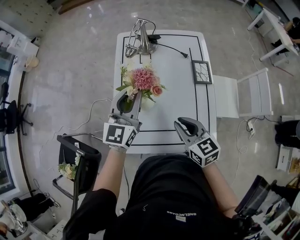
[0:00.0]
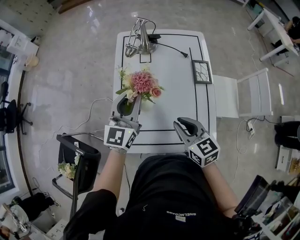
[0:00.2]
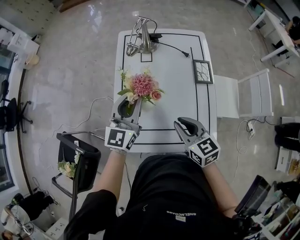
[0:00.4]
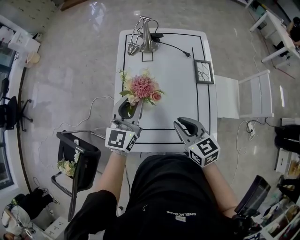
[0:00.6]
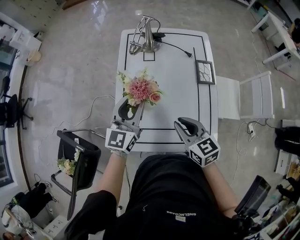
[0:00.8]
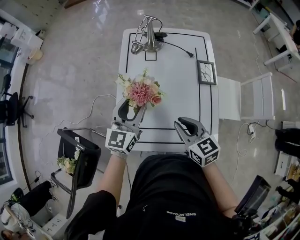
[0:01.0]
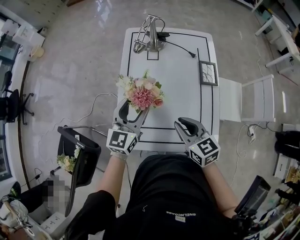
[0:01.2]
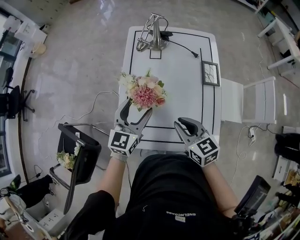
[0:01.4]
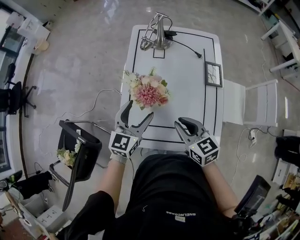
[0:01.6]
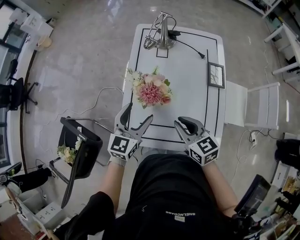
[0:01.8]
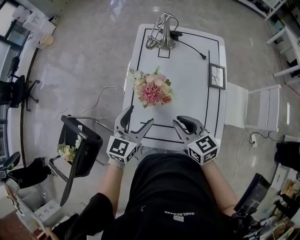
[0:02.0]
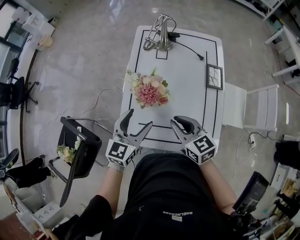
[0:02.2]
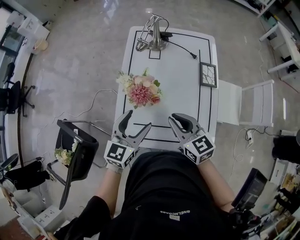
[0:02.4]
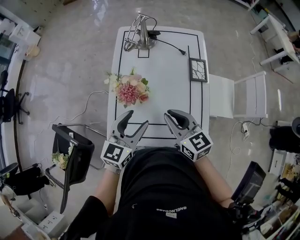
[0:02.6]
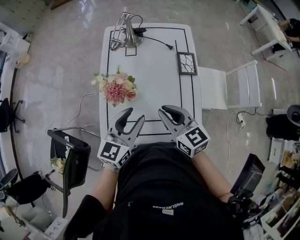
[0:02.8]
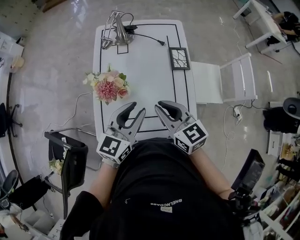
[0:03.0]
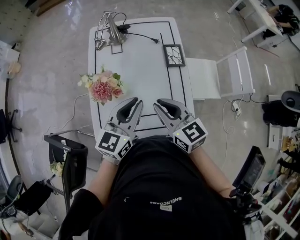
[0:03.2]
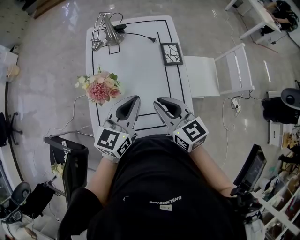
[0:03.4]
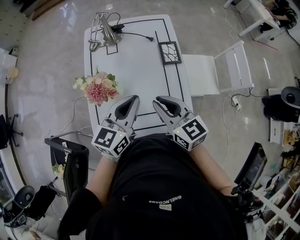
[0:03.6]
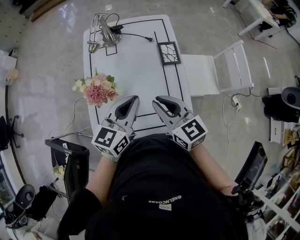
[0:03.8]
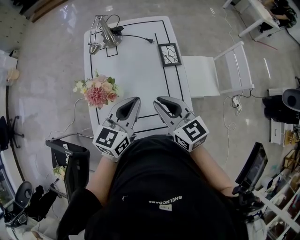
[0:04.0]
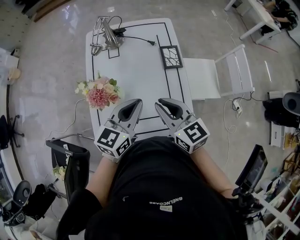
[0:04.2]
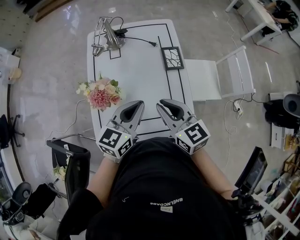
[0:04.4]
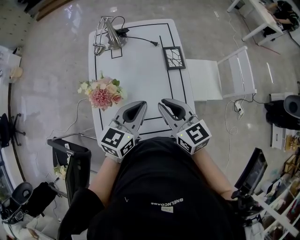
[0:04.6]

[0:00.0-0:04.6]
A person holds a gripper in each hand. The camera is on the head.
0:00.0 to 0:01.6: The left gripper travels downward and backward by some 10 cm, and opens.
0:01.6 to 0:03.0: The left gripper goes some 15 cm to the right, upward and backward, and closes up. The right gripper moves upward and to the right, roughly 10 cm.
0:03.0 to 0:04.6: The left gripper closes its fingers.

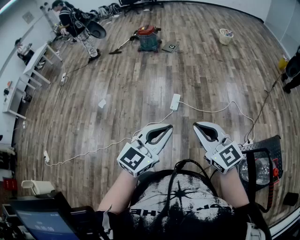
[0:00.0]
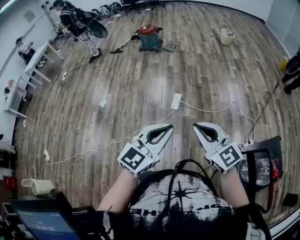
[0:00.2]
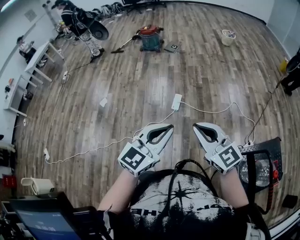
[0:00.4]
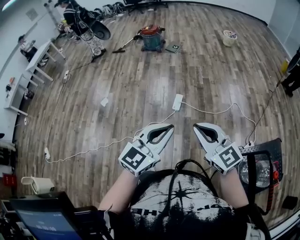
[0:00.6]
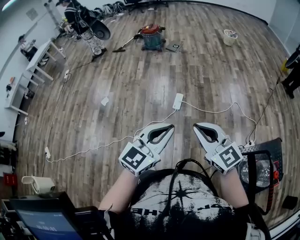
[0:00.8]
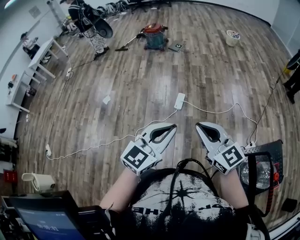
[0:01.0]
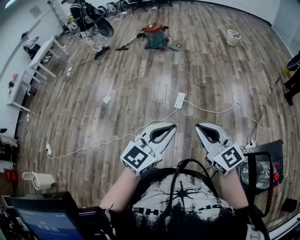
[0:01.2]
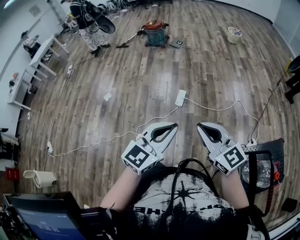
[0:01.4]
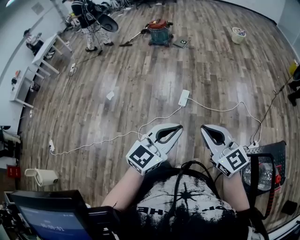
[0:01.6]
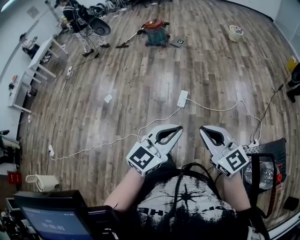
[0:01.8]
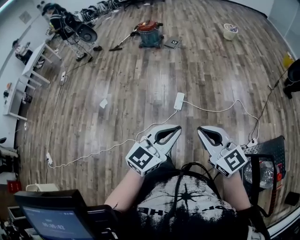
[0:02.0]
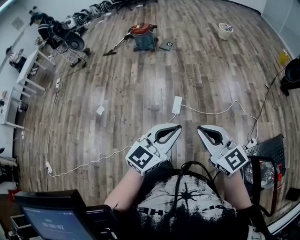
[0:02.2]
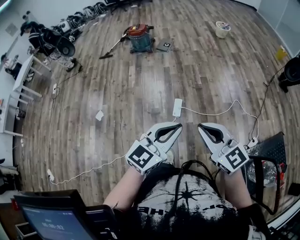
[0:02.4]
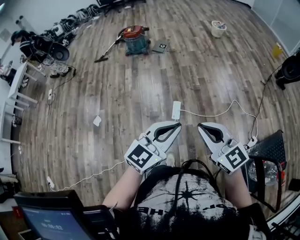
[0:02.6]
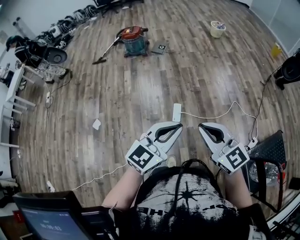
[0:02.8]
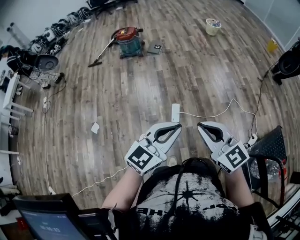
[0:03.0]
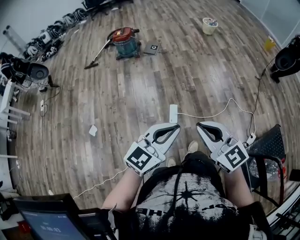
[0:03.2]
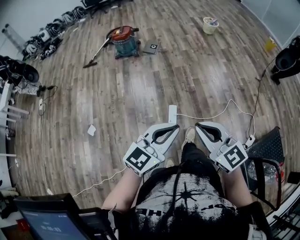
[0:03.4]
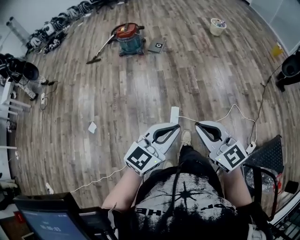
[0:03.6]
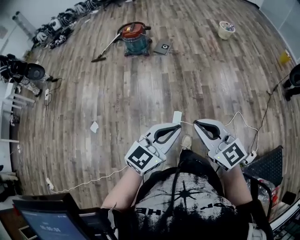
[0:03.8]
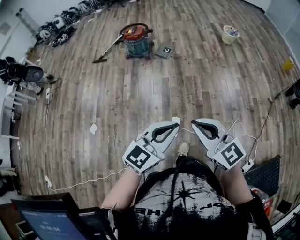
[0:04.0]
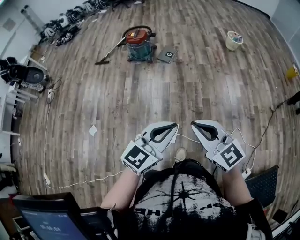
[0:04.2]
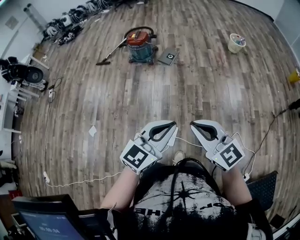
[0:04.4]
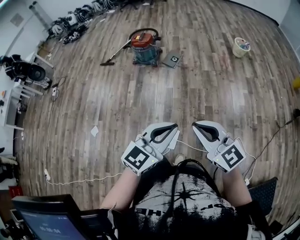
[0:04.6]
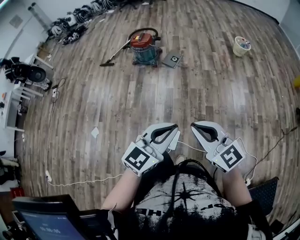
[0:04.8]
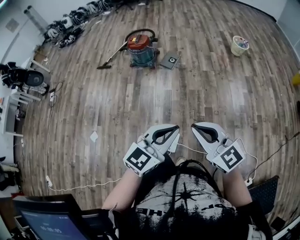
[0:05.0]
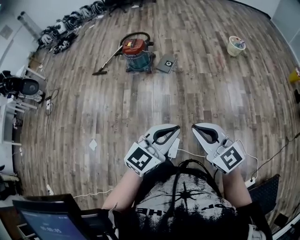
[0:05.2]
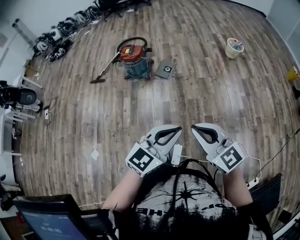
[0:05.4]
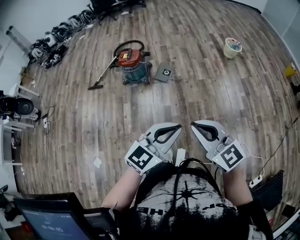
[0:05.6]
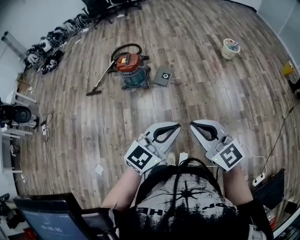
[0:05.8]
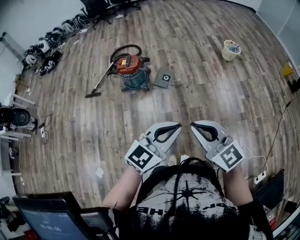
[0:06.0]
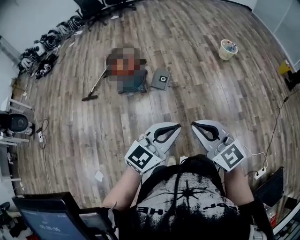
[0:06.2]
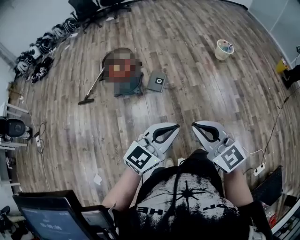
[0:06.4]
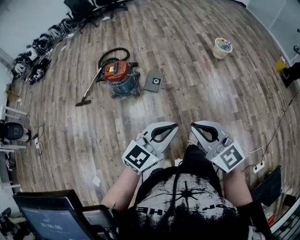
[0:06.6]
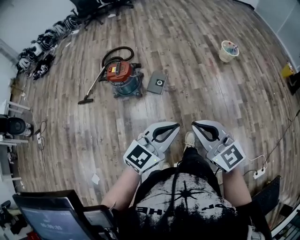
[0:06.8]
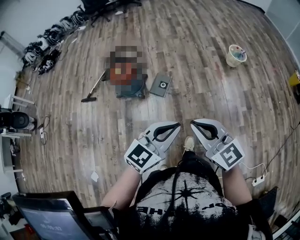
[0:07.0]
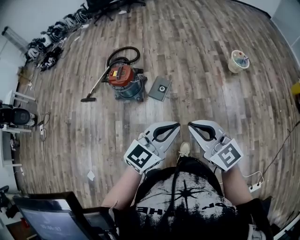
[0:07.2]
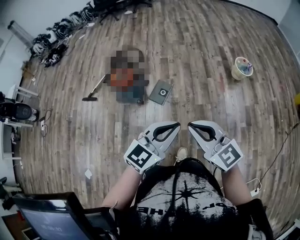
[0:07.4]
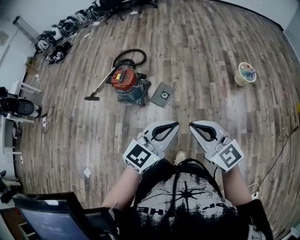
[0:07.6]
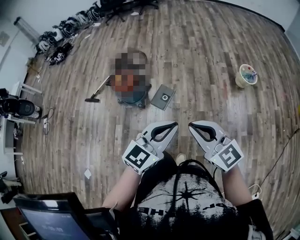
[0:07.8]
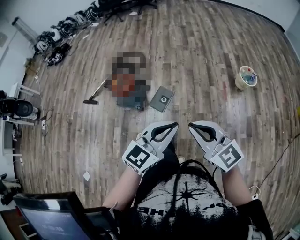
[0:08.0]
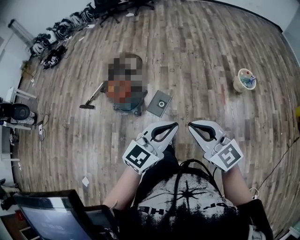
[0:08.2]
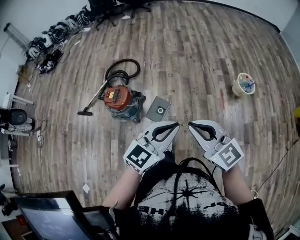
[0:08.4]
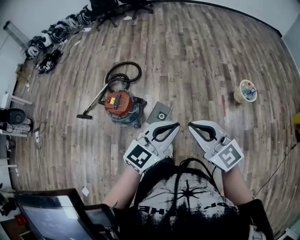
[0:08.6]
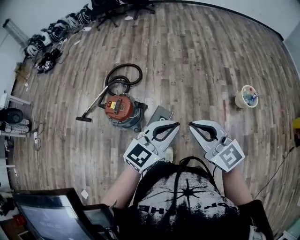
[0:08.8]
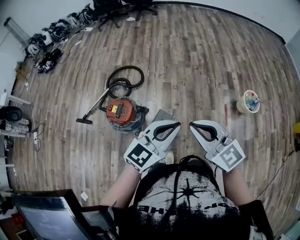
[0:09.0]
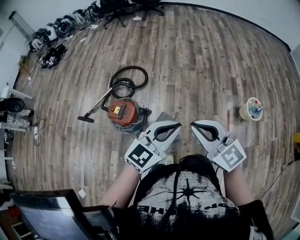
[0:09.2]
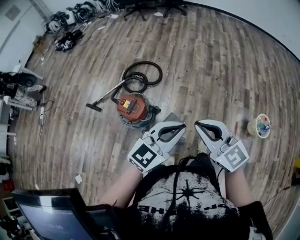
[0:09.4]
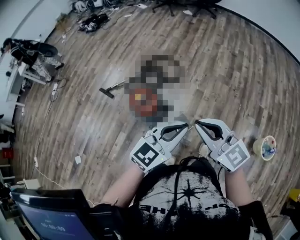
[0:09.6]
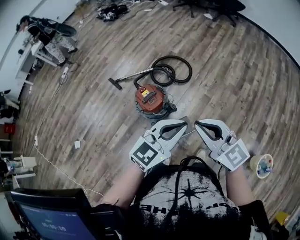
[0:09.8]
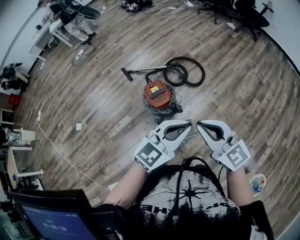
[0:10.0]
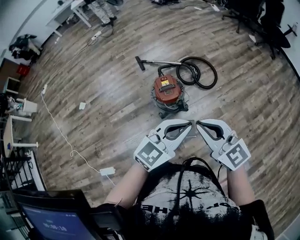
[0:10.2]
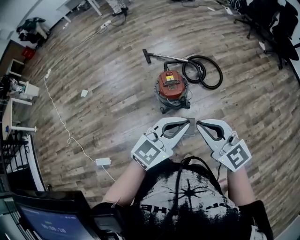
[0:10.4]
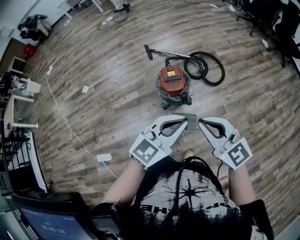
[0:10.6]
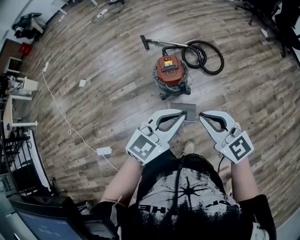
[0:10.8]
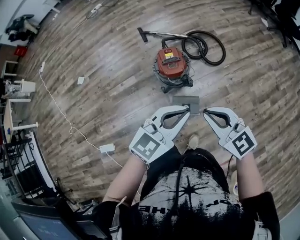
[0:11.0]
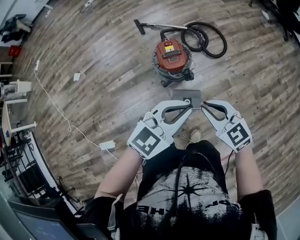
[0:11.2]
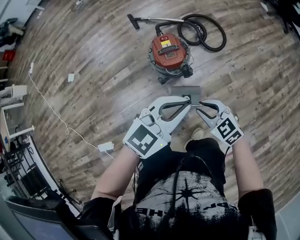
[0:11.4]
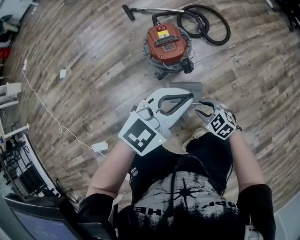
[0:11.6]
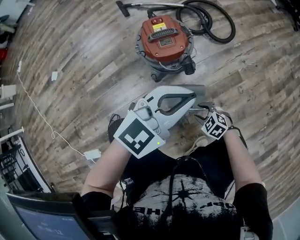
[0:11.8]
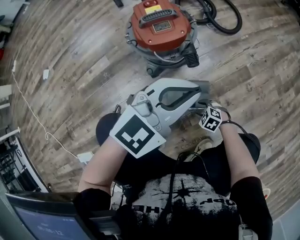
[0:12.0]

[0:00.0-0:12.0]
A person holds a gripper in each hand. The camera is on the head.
0:00.0 to 0:01.6: The grippers make only small movements.
0:01.6 to 0:03.0: Both grippers move forward and to the left, some 30 cm.
0:03.0 to 0:04.4: Both grippers move forward, some 30 cm.
0:04.4 to 0:06.0: The left gripper is displaced forward by roughly 30 cm, while the right gripper travels forward and to the left by some 35 cm.
0:06.0 to 0:07.6: Both grippers move forward and to the right, roughly 40 cm.
0:07.6 to 0:09.0: Both grippers move forward, roughly 35 cm.
0:09.0 to 0:10.4: The right gripper ends up approximately 15 cm from where it was, and changes its angle by about 60 degrees. The left gripper ends up about 15 cm from where it was, and changes its angle by some 60 degrees.
0:10.4 to 0:12.0: The right gripper heads downward, covering roughly 90 cm, points its fingers approximately 60 degrees further downward, and opens up; the left gripper travels downward by roughly 50 cm.

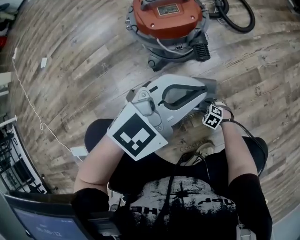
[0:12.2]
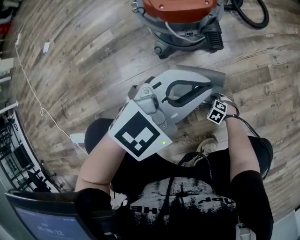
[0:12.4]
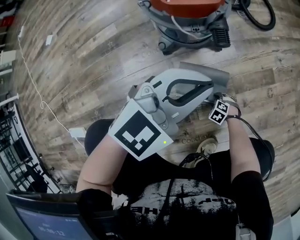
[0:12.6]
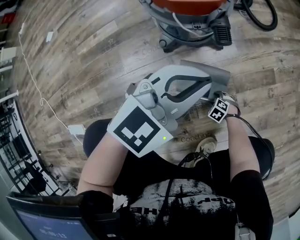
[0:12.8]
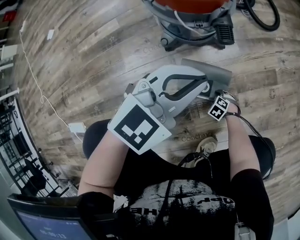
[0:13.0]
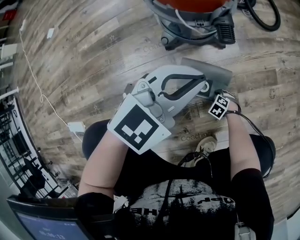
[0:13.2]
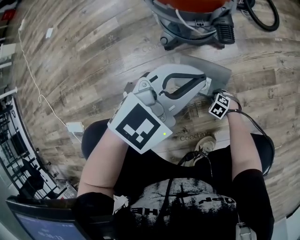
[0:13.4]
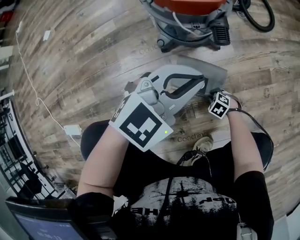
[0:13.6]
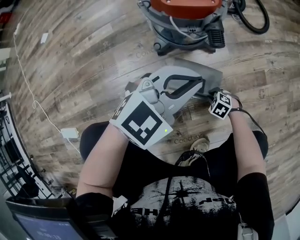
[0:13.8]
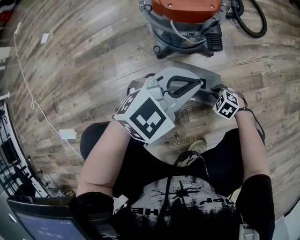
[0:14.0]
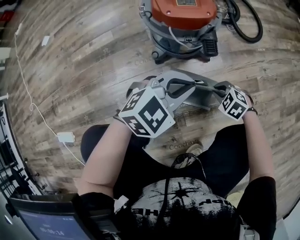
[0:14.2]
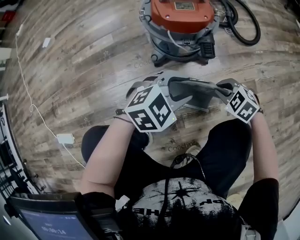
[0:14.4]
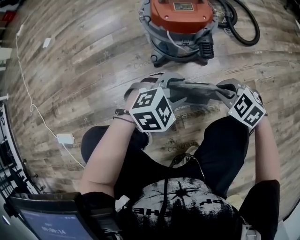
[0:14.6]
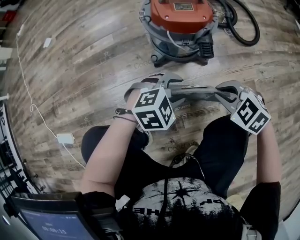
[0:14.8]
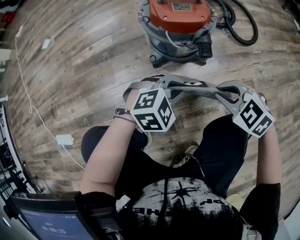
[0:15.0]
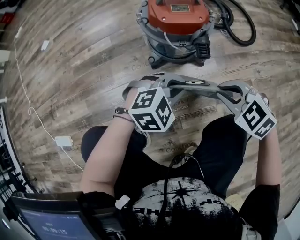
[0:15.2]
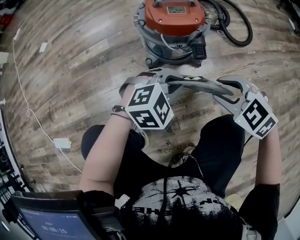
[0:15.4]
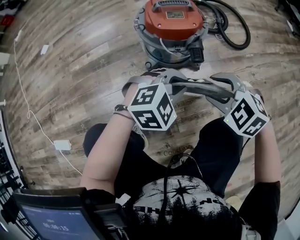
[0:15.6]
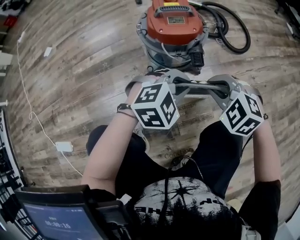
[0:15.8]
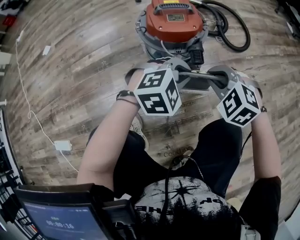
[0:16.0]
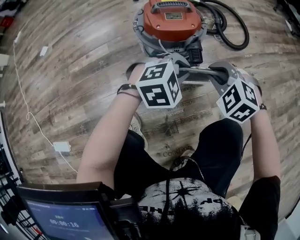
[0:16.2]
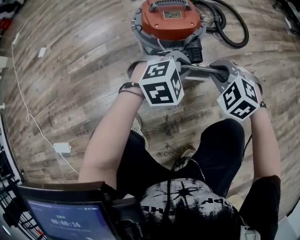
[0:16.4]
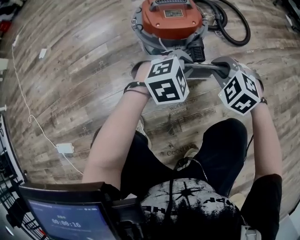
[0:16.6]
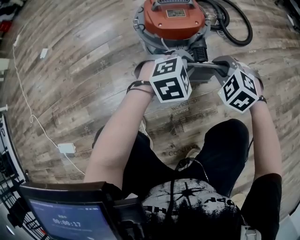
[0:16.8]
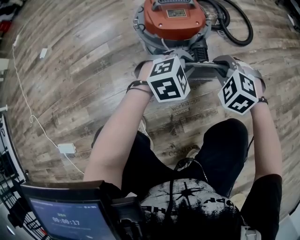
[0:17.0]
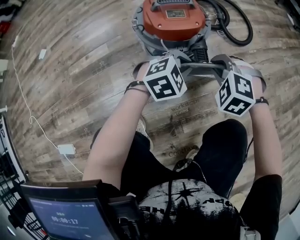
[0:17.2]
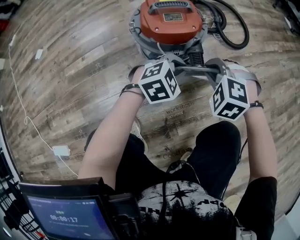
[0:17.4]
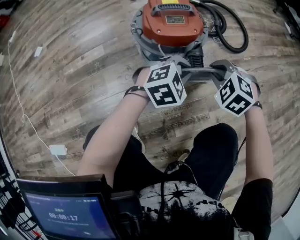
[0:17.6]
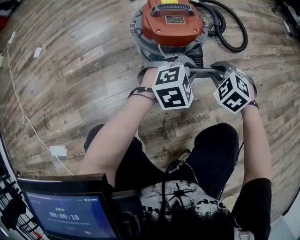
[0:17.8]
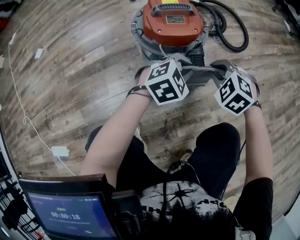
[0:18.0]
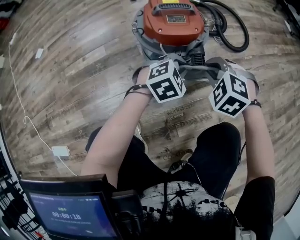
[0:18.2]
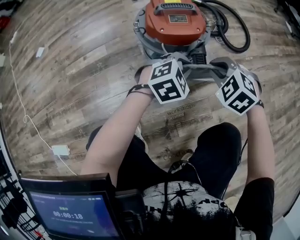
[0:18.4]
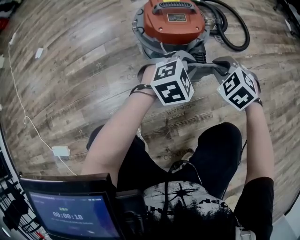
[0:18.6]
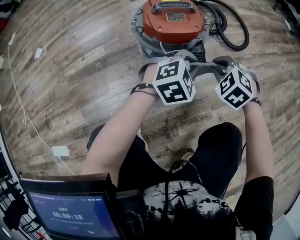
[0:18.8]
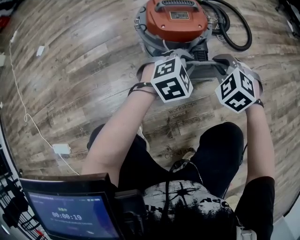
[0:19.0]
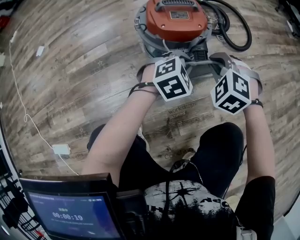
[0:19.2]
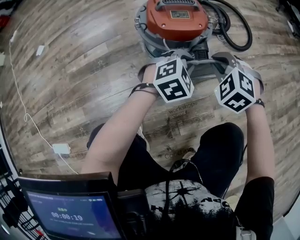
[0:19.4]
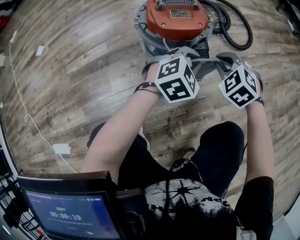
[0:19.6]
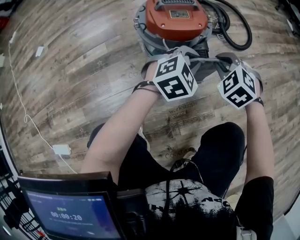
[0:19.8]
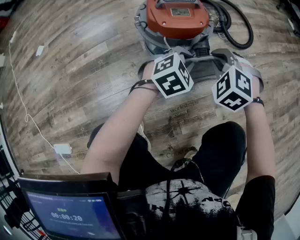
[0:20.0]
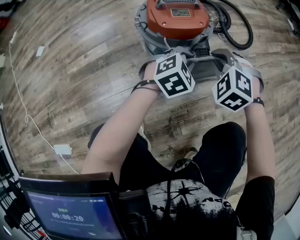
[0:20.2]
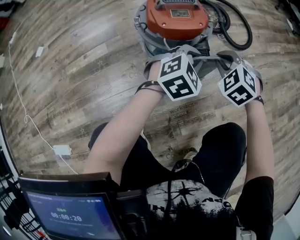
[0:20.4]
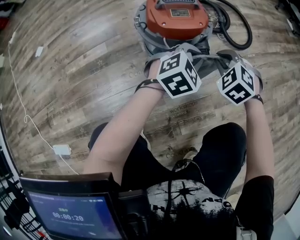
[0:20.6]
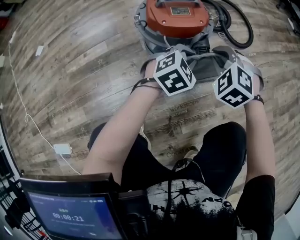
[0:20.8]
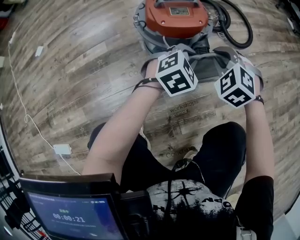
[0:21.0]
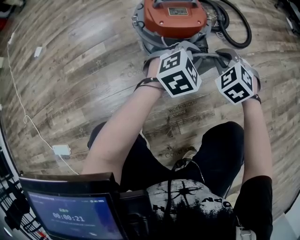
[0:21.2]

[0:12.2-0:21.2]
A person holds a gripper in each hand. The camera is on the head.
0:12.2 to 0:13.8: The right gripper travels downward and back again, about 5 cm each way, and closes its fingers. Meanwhile the left gripper moves downward, approximately 5 cm.
0:13.8 to 0:15.2: The right gripper shifts roughly 35 cm upward, and rotates about 30 degrees; the left gripper shifts some 5 cm downward, swivels roughly 30 degrees, and opens, then closes once more.
0:15.2 to 0:16.6: Both grippers move forward, roughly 10 cm. The right gripper turns by some 20 degrees, and opens, then closes once more.
0:16.6 to 0:18.2: The right gripper moves about 5 cm. Meanwhile the left gripper travels downward by roughly 5 cm.
0:18.2 to 0:21.2: The grippers make only small movements.
